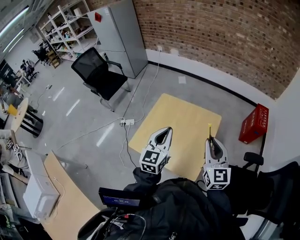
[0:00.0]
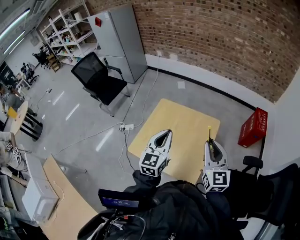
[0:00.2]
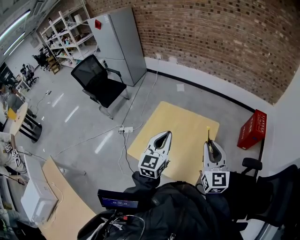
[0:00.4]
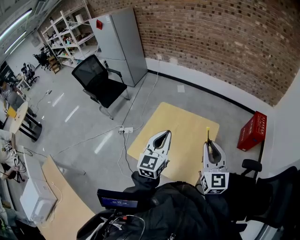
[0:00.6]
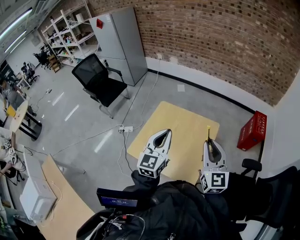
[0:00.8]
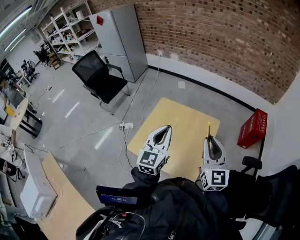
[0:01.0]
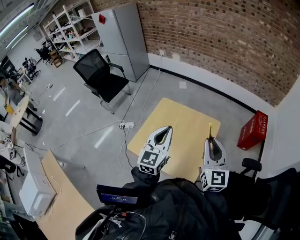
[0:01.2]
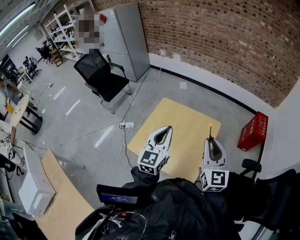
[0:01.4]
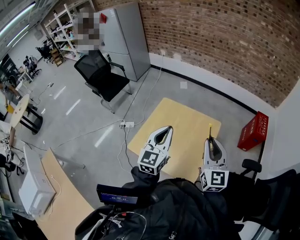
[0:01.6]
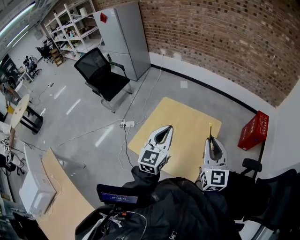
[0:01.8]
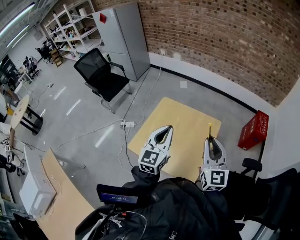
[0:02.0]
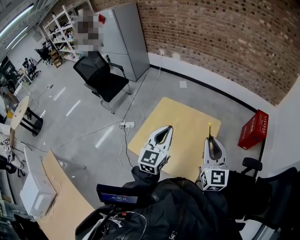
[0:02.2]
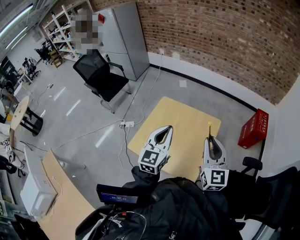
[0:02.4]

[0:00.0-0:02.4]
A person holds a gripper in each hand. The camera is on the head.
0:00.0 to 0:01.2: There are only small adjustments of the grippers.
0:01.2 to 0:02.4: Neither gripper changes place.

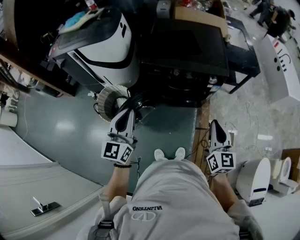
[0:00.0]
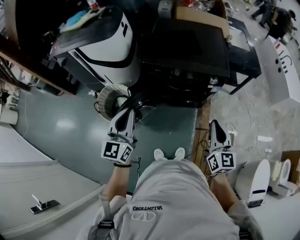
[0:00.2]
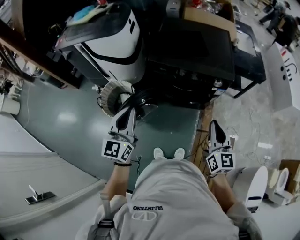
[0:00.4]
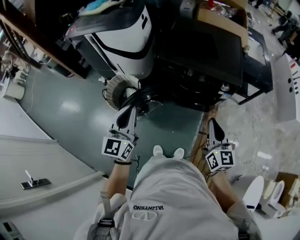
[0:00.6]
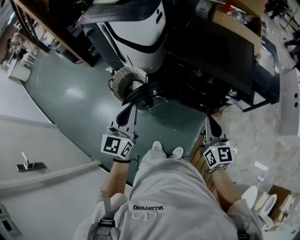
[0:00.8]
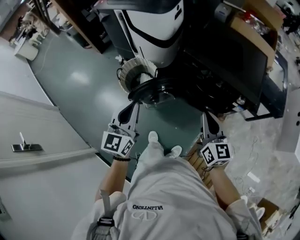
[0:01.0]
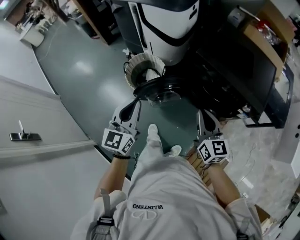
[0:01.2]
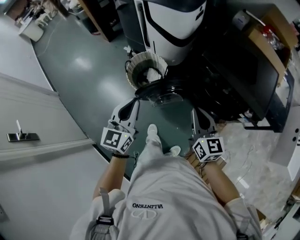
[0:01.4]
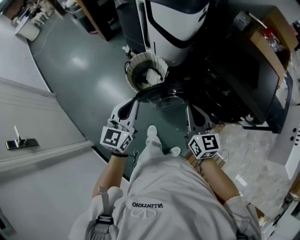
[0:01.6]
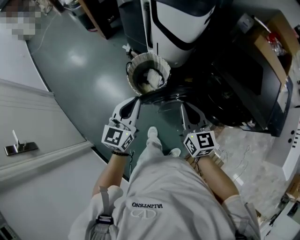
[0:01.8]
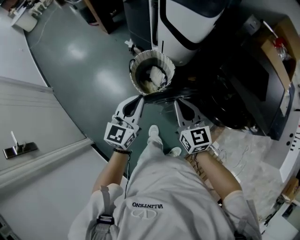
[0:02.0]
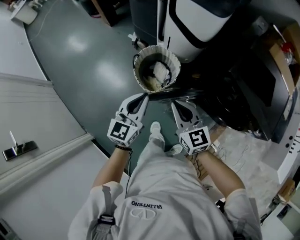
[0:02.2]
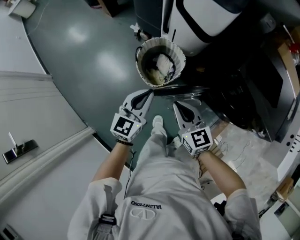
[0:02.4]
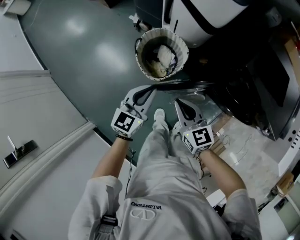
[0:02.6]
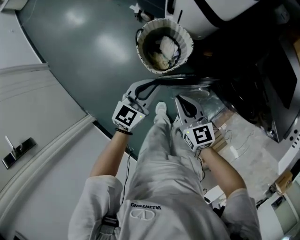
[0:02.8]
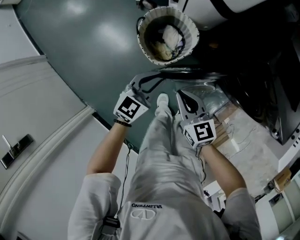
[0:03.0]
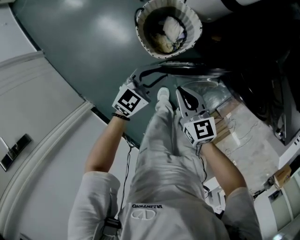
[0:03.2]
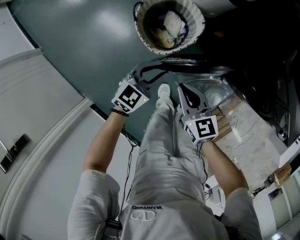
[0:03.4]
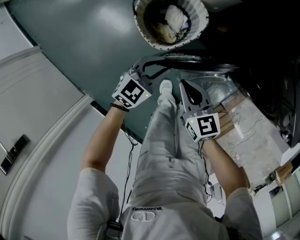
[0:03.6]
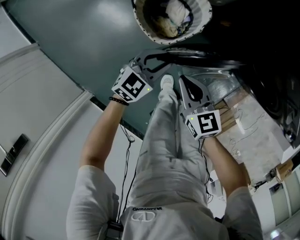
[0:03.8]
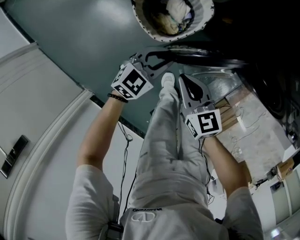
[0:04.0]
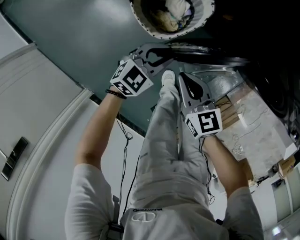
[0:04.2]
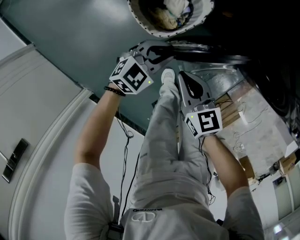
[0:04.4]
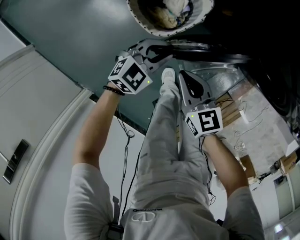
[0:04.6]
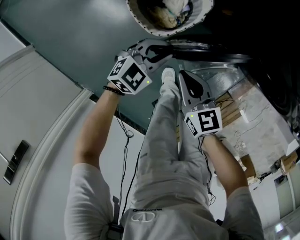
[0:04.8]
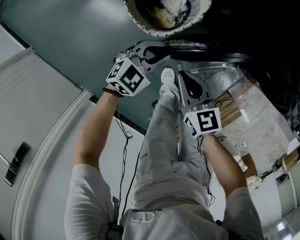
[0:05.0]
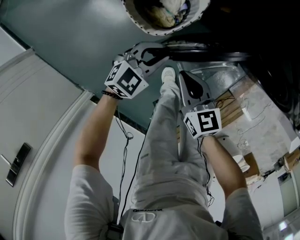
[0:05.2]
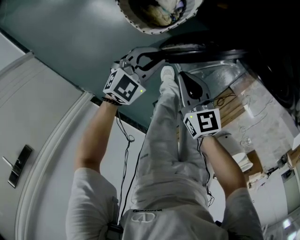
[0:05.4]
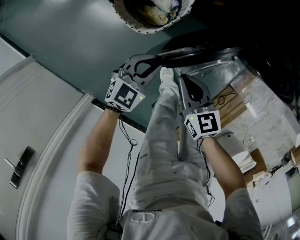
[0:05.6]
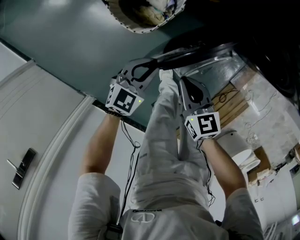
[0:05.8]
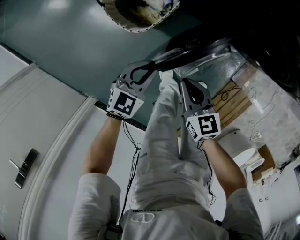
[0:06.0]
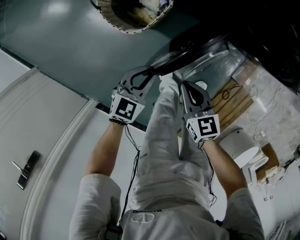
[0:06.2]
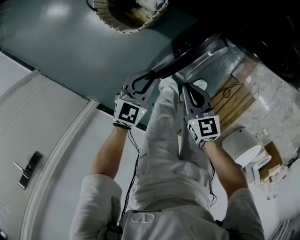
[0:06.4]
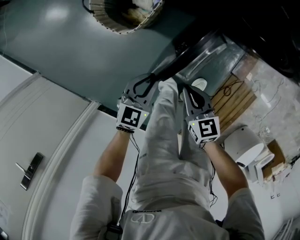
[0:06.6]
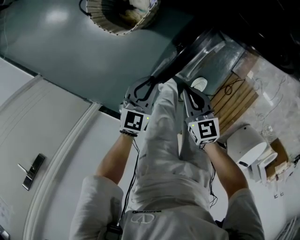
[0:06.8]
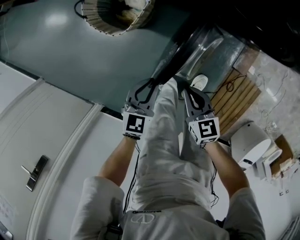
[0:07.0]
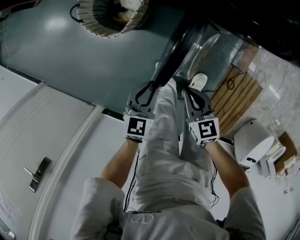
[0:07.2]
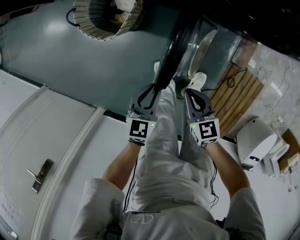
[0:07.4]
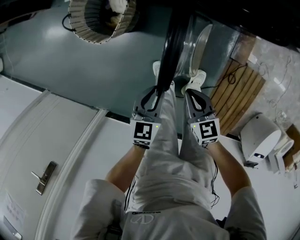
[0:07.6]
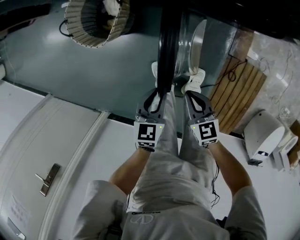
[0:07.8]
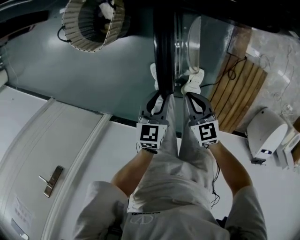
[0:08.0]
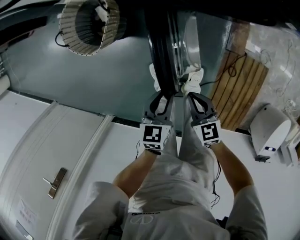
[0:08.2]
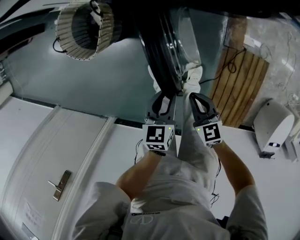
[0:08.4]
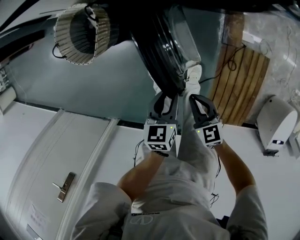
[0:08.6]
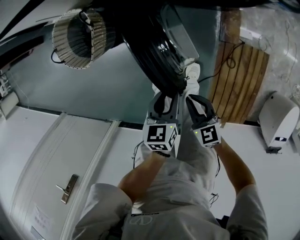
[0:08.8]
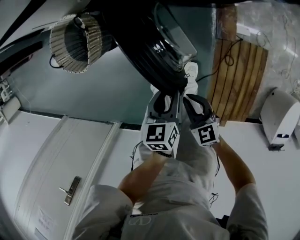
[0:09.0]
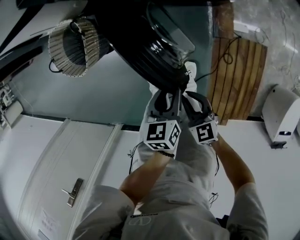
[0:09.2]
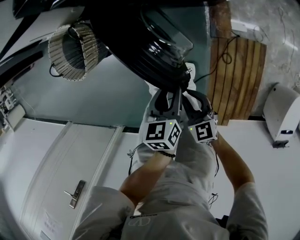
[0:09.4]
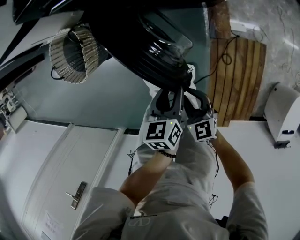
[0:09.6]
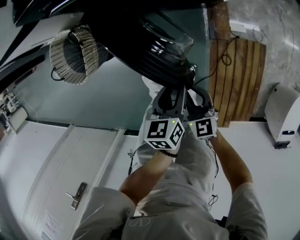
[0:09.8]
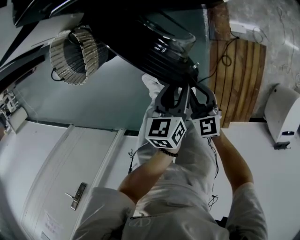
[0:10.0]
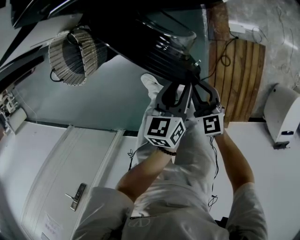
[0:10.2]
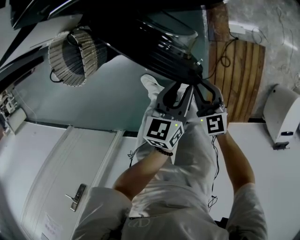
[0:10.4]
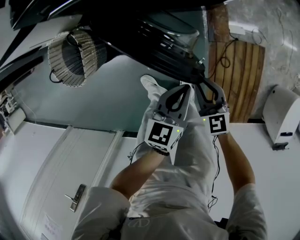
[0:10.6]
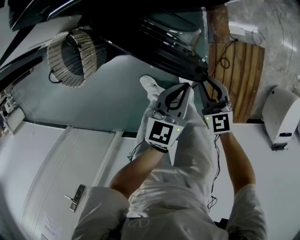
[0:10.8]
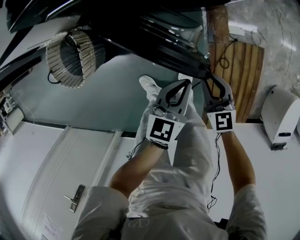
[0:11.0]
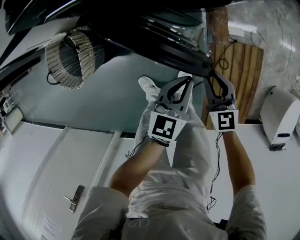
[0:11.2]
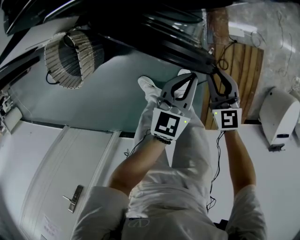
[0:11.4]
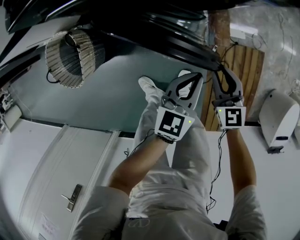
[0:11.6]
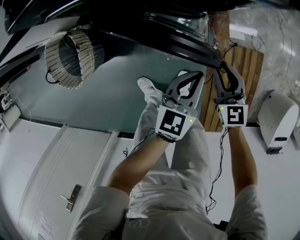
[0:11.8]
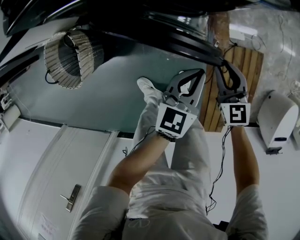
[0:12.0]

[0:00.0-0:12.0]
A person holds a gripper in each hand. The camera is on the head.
0:00.0 to 0:01.6: The left gripper moves about 20 cm, and changes its angle by roughly 30 degrees, while the right gripper ends up roughly 35 cm from where it was, and rotates roughly 40 degrees.
0:01.6 to 0:03.0: The left gripper heads downward and forward, covering about 30 cm, and swivels roughly 30 degrees; the right gripper is displaced downward, to the left and forward by roughly 30 cm, and turns by roughly 20 degrees.
0:03.0 to 0:04.4: The two grippers go roughly 15 cm downward. The left gripper swivels some 30 degrees.
0:04.4 to 0:06.0: The left gripper heads backward and to the right, covering some 10 cm. The right gripper goes some 15 cm to the right and backward.
0:06.0 to 0:07.6: The grippers both shift to the right and backward by roughly 20 cm.
0:07.6 to 0:09.0: The right gripper goes roughly 15 cm to the right and backward. Meanwhile the left gripper travels to the right by approximately 20 cm.
0:09.0 to 0:10.4: The left gripper is displaced to the right by approximately 10 cm. The right gripper heads to the right and forward, covering roughly 10 cm.
0:10.4 to 0:12.0: The left gripper heads forward, covering some 10 cm, rotates roughly 20 degrees, and closes its fingers; the right gripper heads forward and to the right, covering roughly 15 cm.

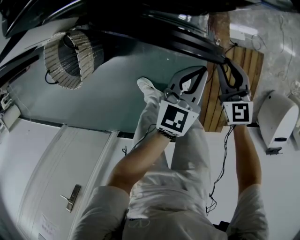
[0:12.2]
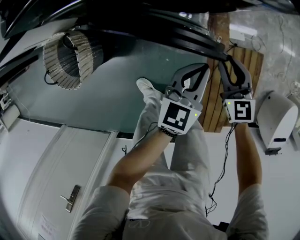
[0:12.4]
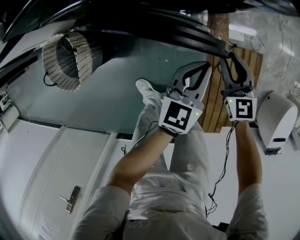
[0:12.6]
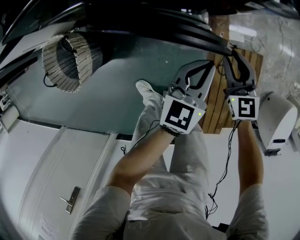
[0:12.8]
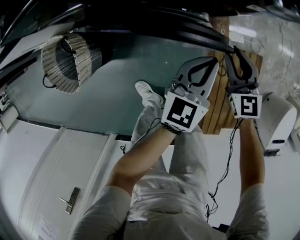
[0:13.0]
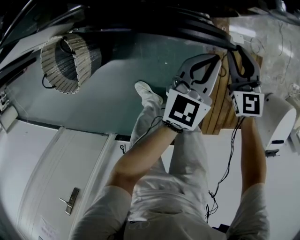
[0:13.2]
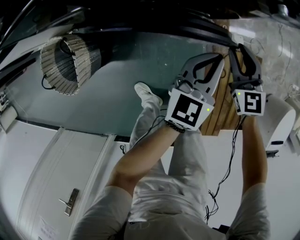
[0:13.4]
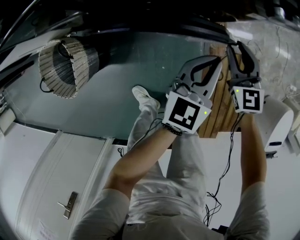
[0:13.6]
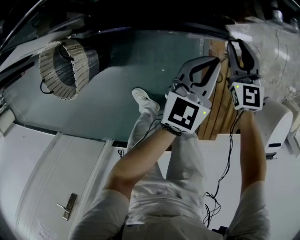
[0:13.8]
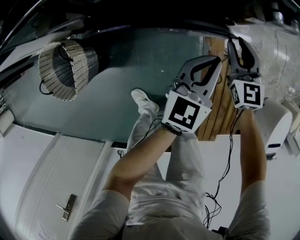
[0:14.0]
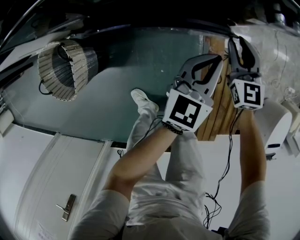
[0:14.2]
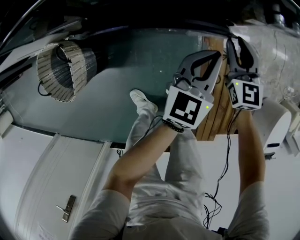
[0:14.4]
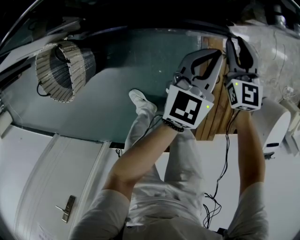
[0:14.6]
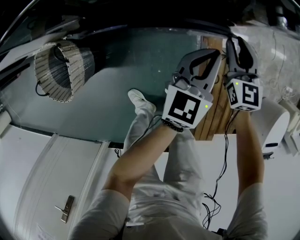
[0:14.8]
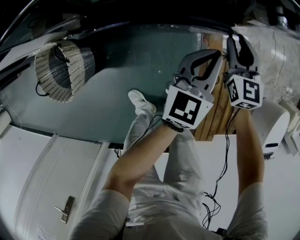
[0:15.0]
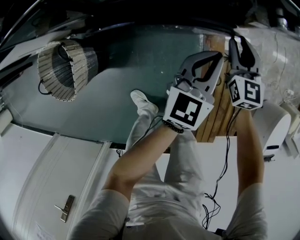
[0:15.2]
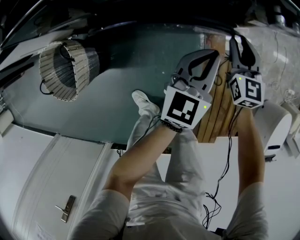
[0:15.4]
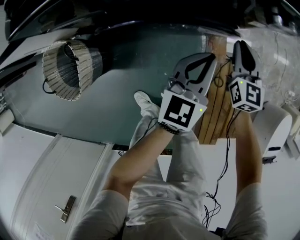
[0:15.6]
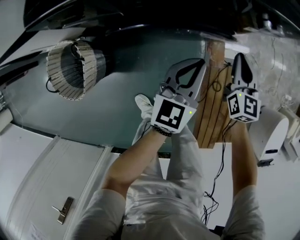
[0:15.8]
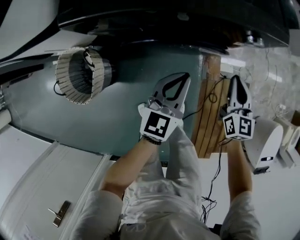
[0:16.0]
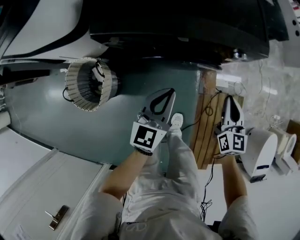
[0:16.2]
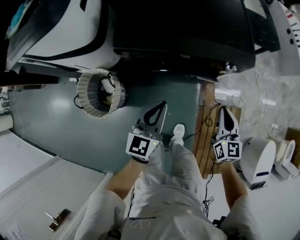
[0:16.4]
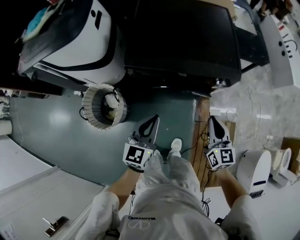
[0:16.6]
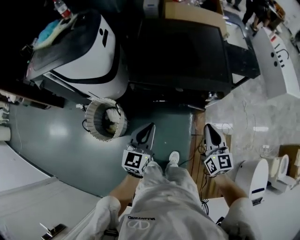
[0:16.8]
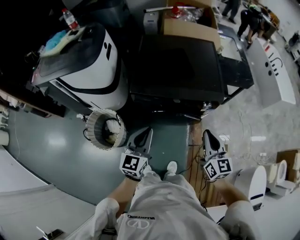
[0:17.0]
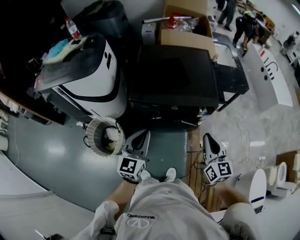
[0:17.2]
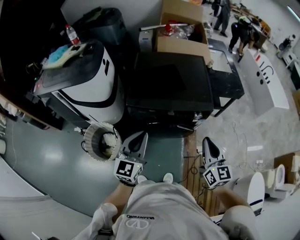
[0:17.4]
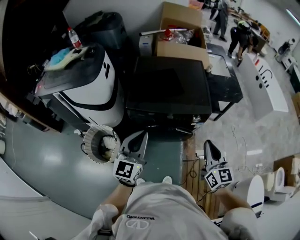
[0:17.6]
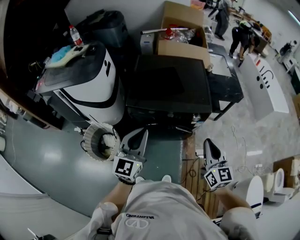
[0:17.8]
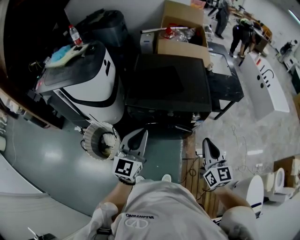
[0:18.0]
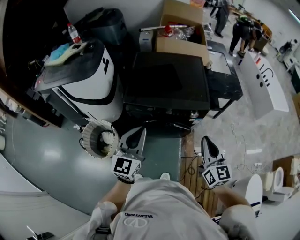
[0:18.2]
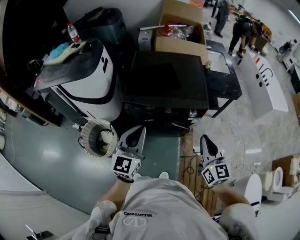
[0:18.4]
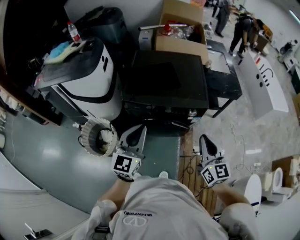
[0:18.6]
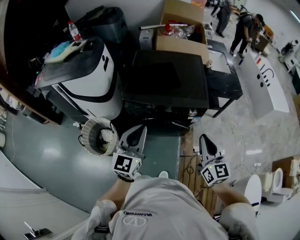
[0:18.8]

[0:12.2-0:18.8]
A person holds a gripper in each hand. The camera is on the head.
0:12.2 to 0:13.8: The two grippers go approximately 10 cm forward.
0:13.8 to 0:15.4: There are only small adjustments of the grippers.
0:15.4 to 0:17.2: The left gripper shifts about 50 cm upward and to the left, and swivels about 20 degrees. The right gripper travels upward by about 50 cm, changes its angle by some 20 degrees, and closes its fingers.
0:17.2 to 0:18.8: The right gripper ends up some 5 cm from where it was, while the left gripper shifts some 5 cm upward.

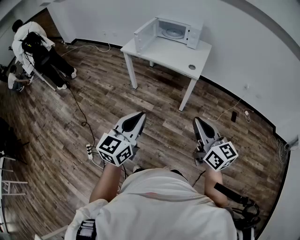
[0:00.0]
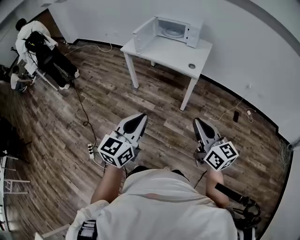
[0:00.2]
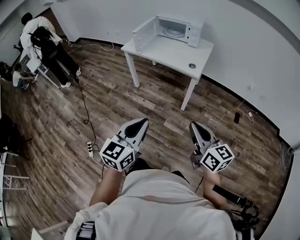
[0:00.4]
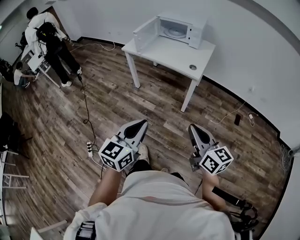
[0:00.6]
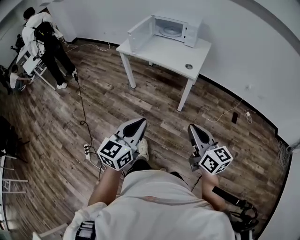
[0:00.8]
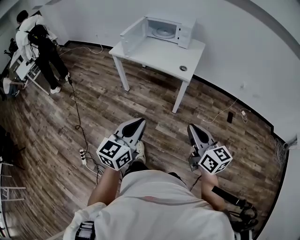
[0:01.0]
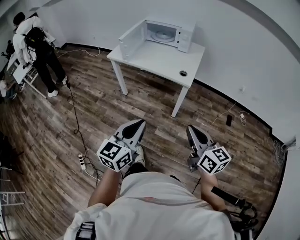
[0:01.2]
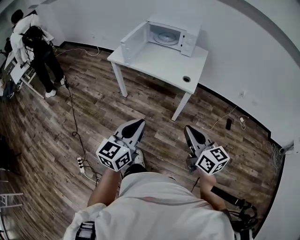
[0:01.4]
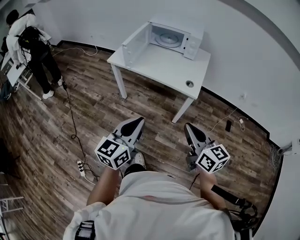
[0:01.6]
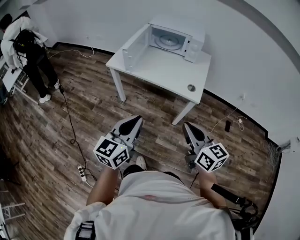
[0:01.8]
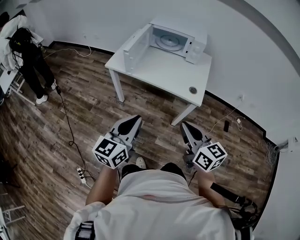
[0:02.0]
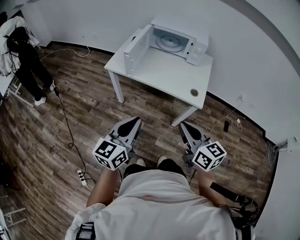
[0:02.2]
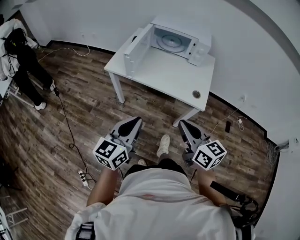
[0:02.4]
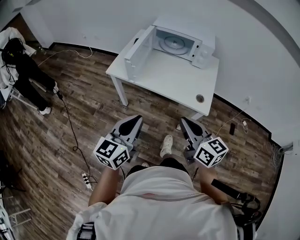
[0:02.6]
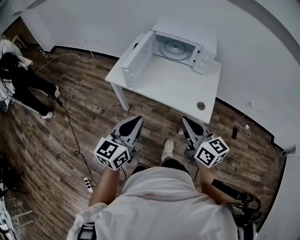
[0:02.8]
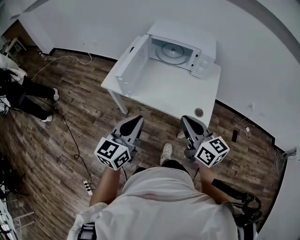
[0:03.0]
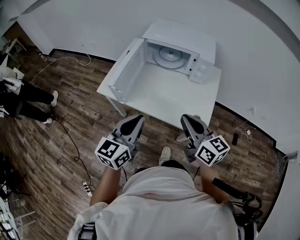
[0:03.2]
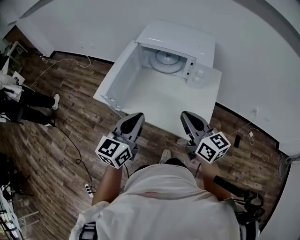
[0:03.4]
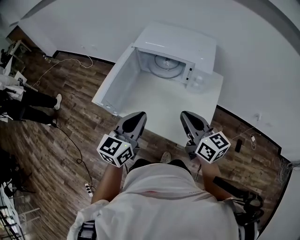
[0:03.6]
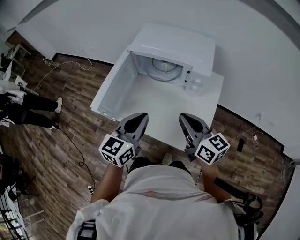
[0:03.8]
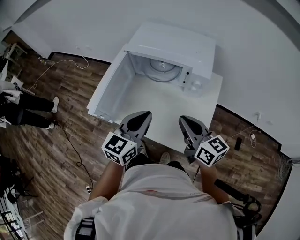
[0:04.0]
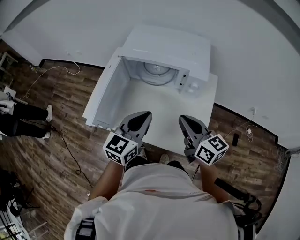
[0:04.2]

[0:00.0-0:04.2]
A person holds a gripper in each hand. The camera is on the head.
0:00.0 to 0:01.4: The two grippers go about 15 cm forward.
0:01.4 to 0:02.8: The grippers both shift forward and to the left by approximately 30 cm.
0:02.8 to 0:04.2: The two grippers go about 35 cm forward and to the right.
